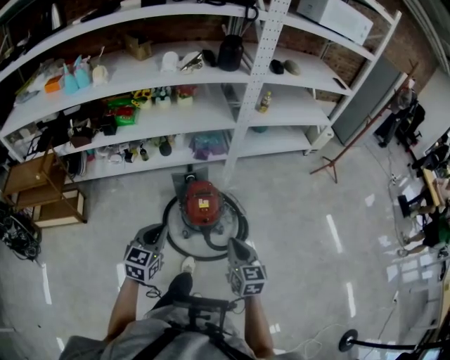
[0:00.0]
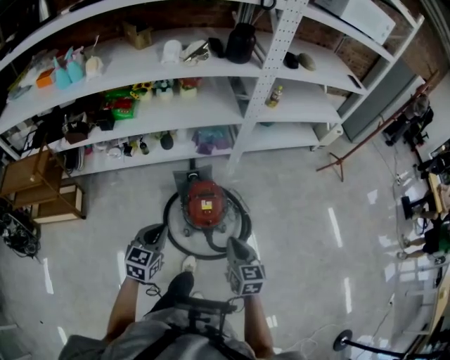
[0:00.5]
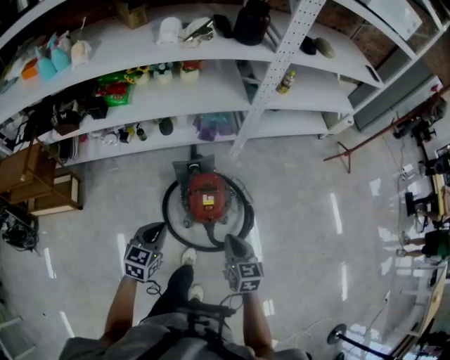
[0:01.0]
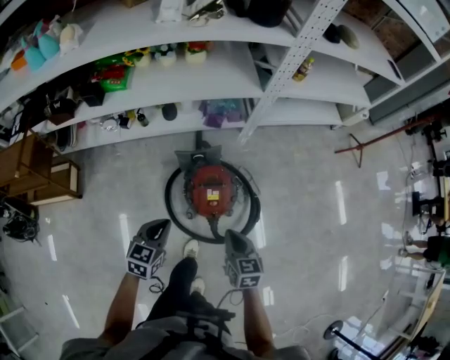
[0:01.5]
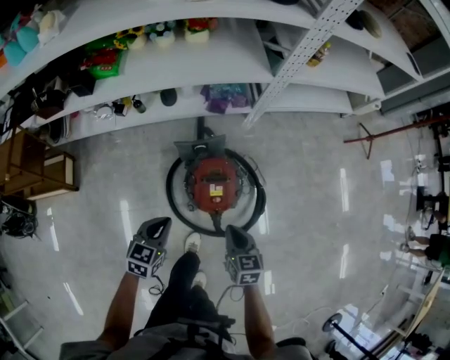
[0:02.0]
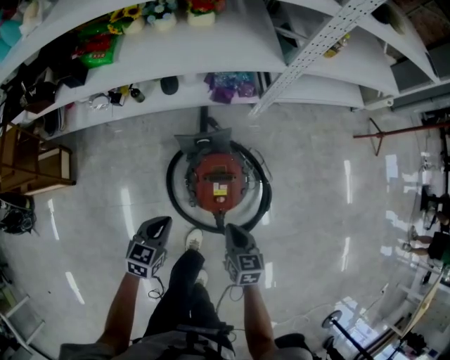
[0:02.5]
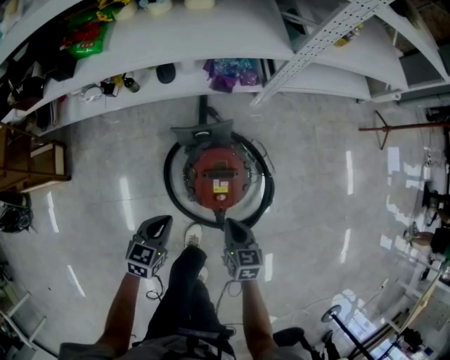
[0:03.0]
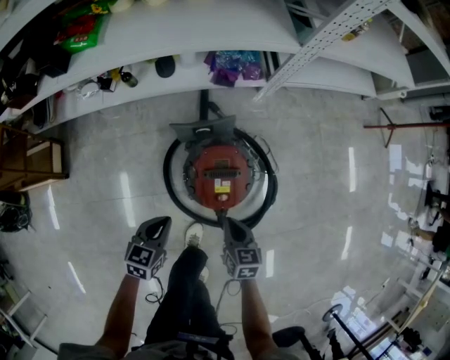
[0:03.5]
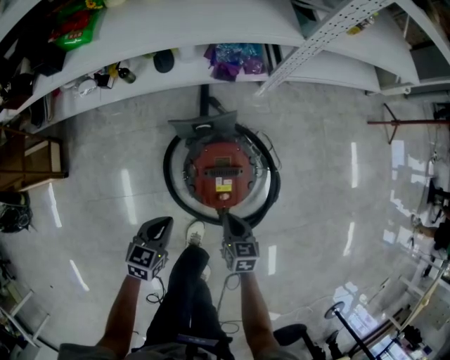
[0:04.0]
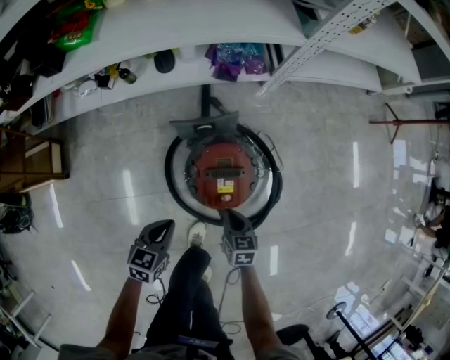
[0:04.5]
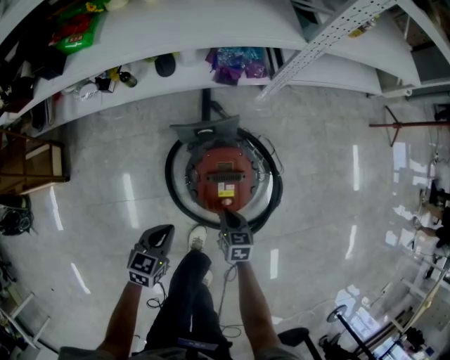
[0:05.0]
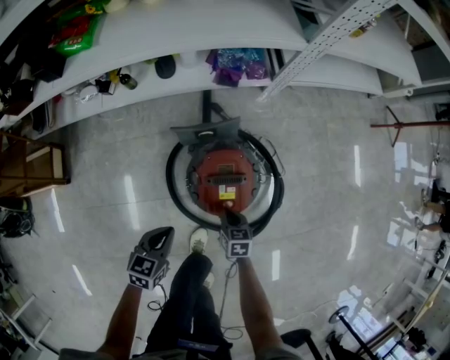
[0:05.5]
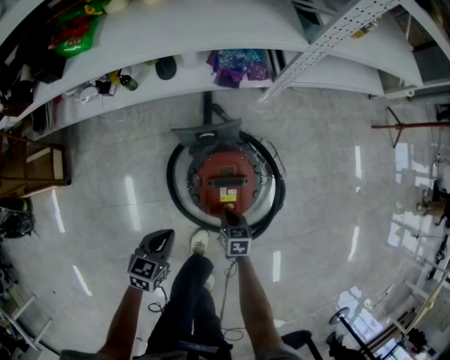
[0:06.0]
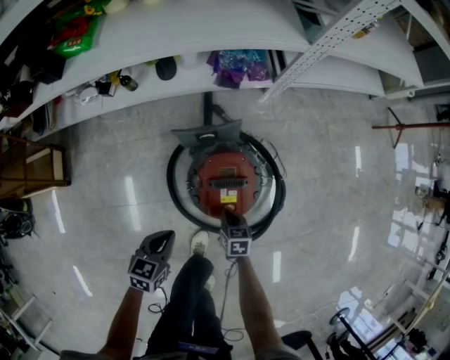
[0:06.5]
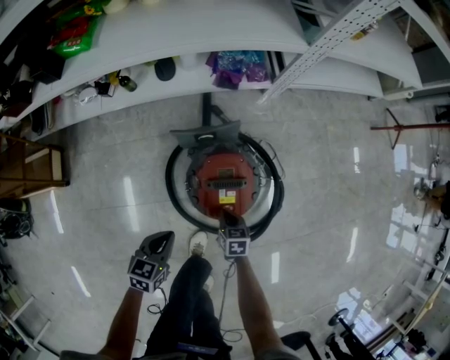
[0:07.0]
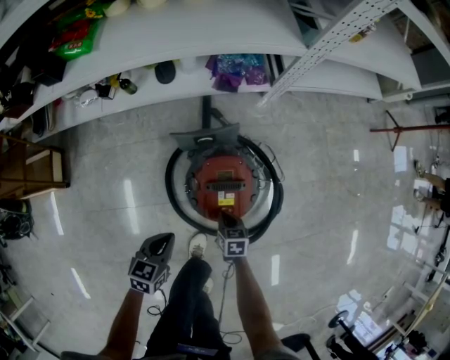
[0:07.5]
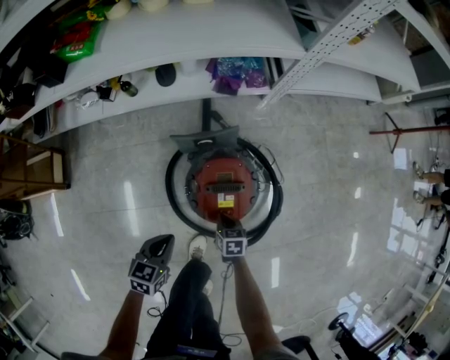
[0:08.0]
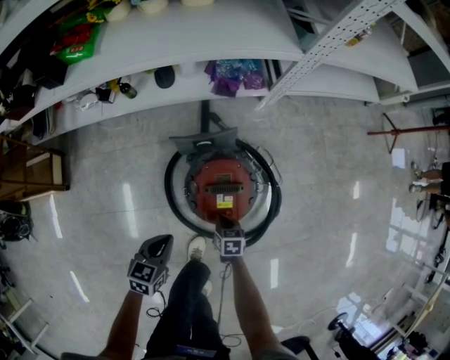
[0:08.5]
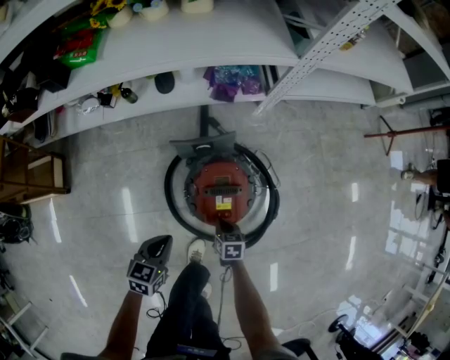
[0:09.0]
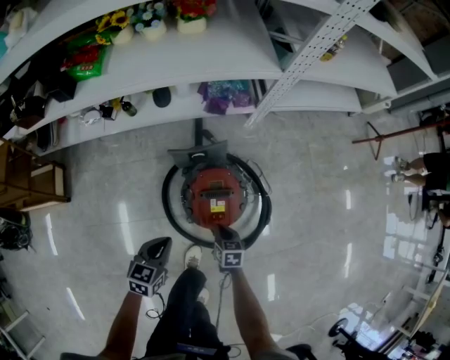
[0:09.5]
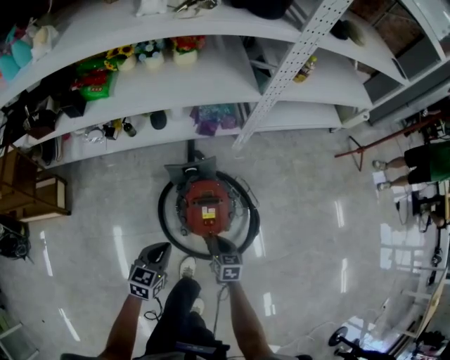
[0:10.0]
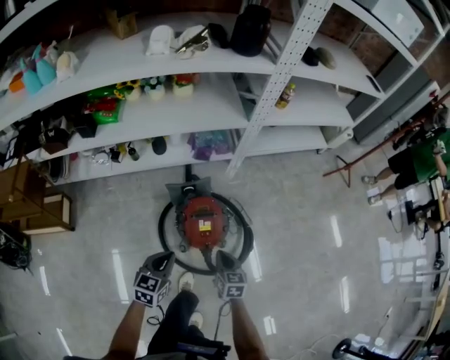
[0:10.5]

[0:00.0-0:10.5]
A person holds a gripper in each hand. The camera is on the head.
0:00.0 to 0:02.0: The right gripper moves forward and downward, about 30 cm. Meanwhile the left gripper is displaced downward and forward by about 30 cm.
0:02.0 to 0:04.0: Both grippers move downward, some 20 cm.
0:04.0 to 0:06.5: The right gripper goes about 10 cm downward.
0:06.5 to 0:08.5: There are only small adjustments of the grippers.
0:08.5 to 0:10.5: The right gripper moves upward, some 30 cm, and swivels approximately 30 degrees. The left gripper is displaced upward by about 20 cm.

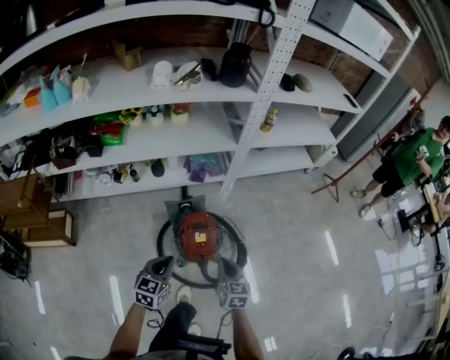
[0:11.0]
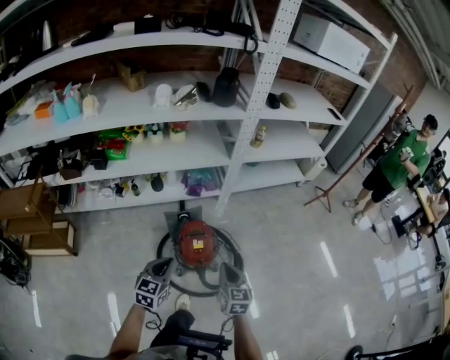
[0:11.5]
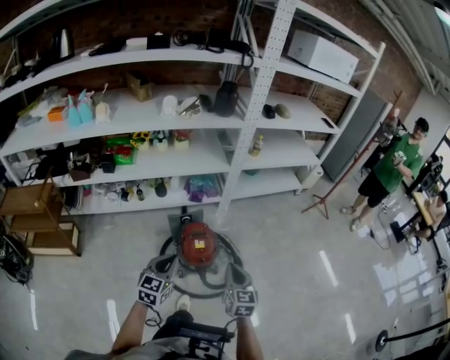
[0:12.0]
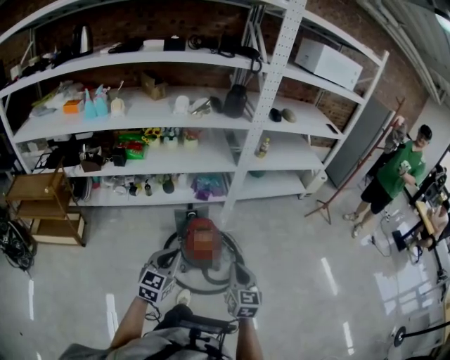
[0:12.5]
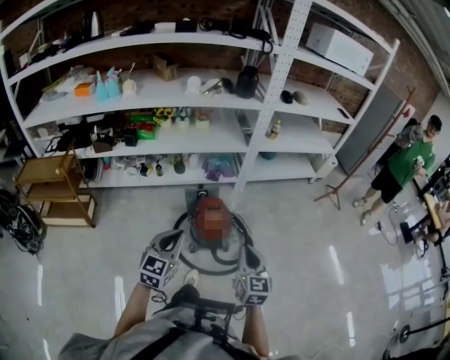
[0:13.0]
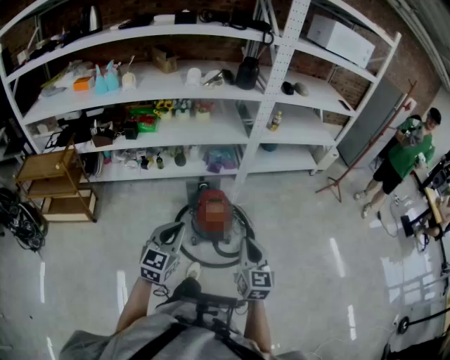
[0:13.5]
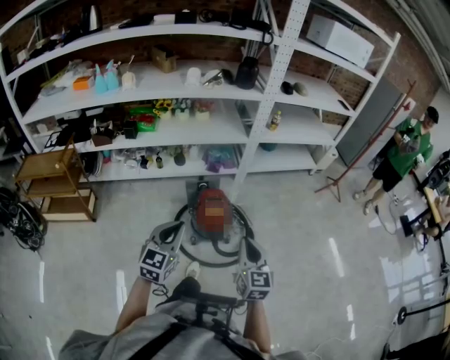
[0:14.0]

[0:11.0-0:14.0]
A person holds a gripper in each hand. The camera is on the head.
0:11.0 to 0:12.5: The two grippers go about 25 cm backward and upward.
0:12.5 to 0:14.0: Both grippers travel together backward, approximately 5 cm.

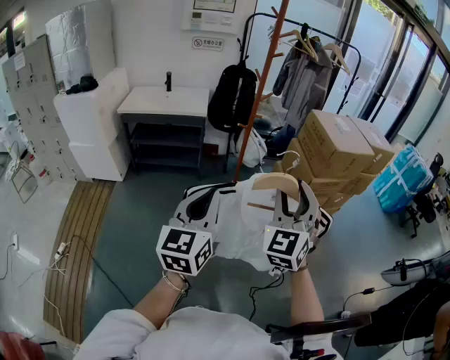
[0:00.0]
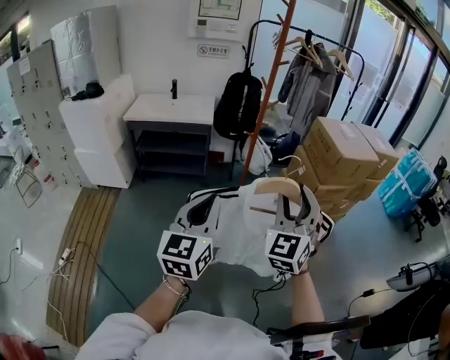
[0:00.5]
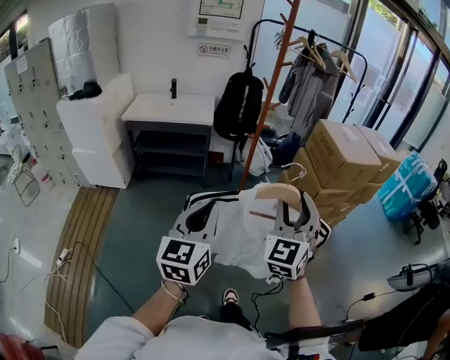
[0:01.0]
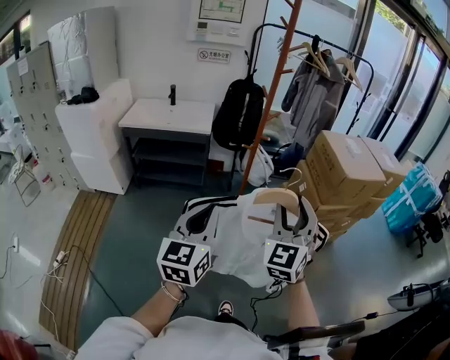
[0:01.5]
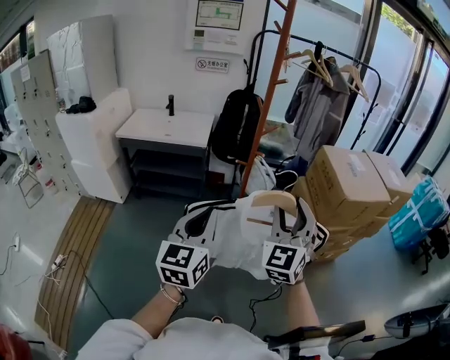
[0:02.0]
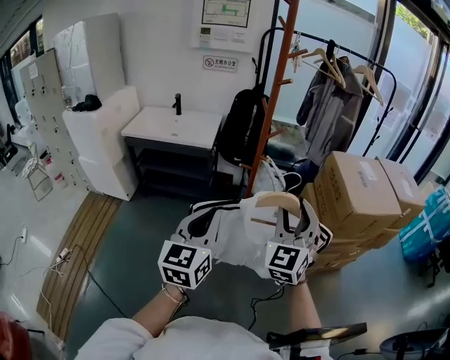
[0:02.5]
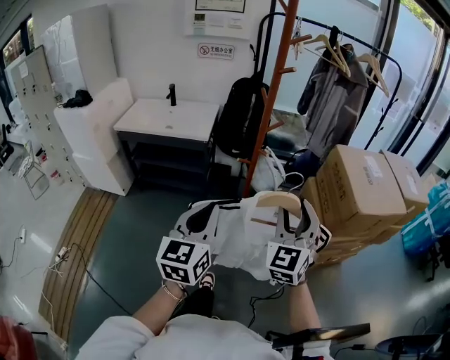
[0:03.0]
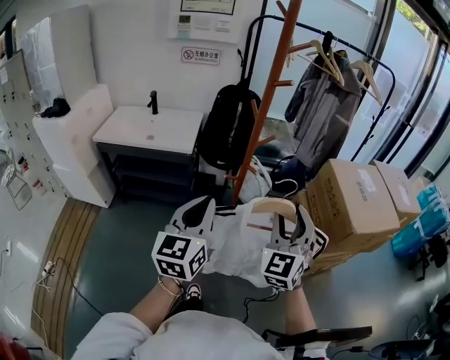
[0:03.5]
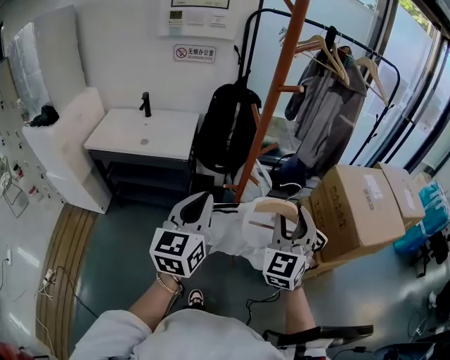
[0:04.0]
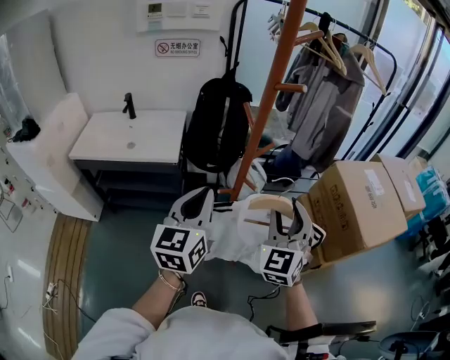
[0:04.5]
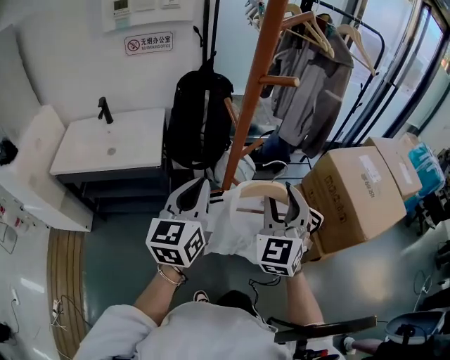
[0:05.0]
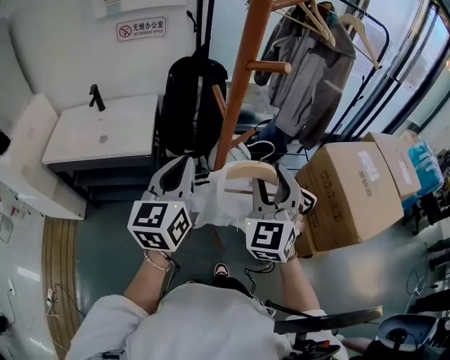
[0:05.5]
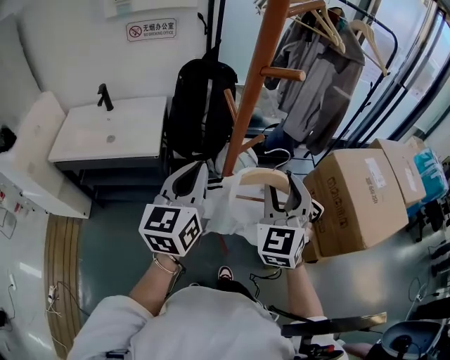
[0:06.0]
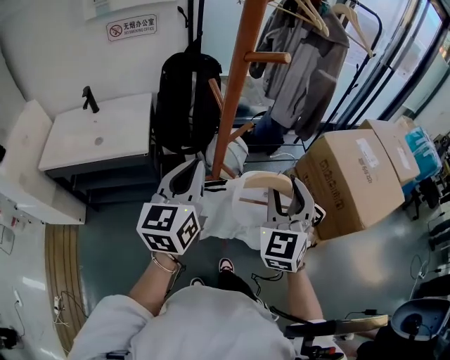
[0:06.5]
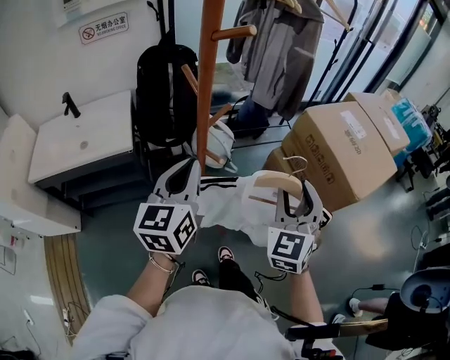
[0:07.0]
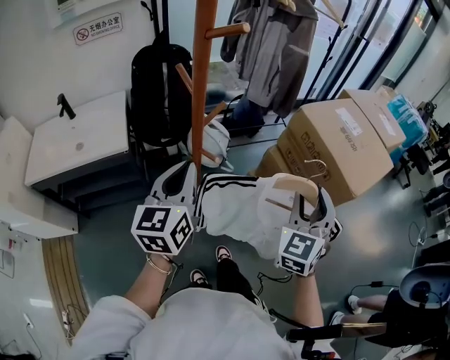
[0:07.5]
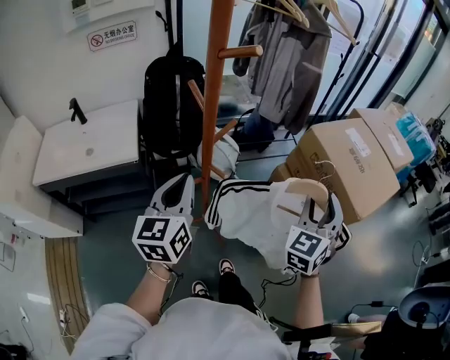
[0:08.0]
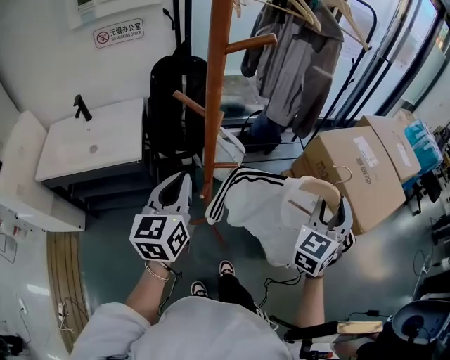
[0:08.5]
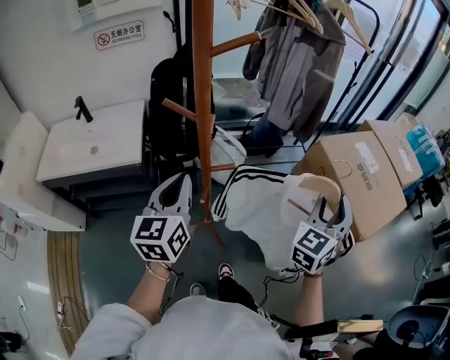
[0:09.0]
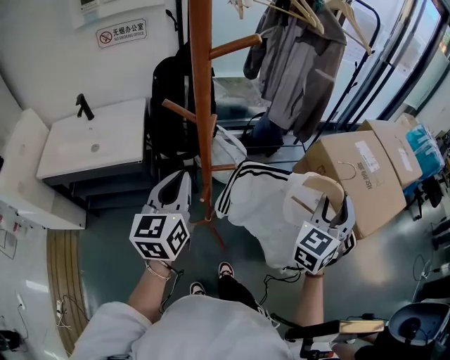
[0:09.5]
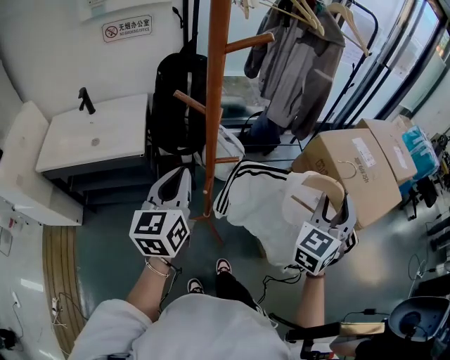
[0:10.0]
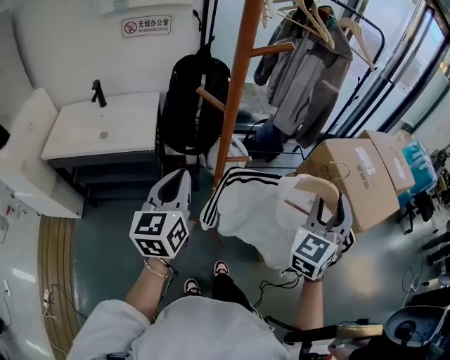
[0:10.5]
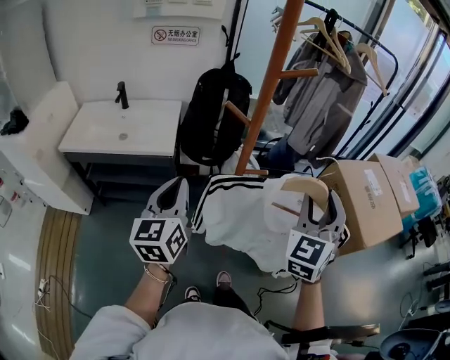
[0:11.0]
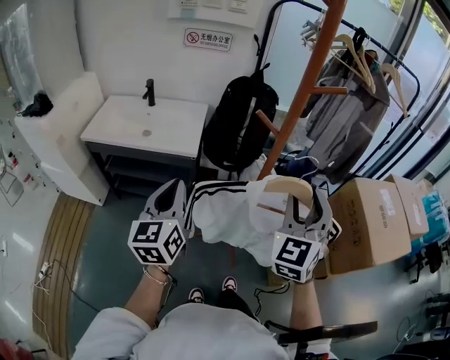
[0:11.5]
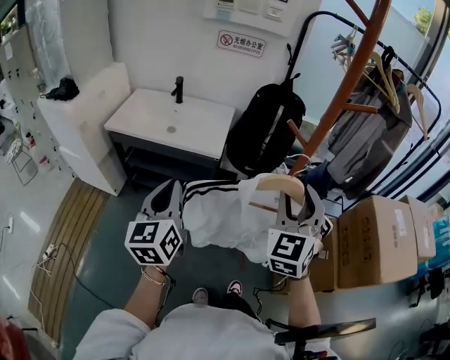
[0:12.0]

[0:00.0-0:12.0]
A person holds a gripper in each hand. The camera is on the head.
0:00.0 to 0:02.0: Both grippers travel together forward, roughly 20 cm.
0:02.0 to 0:04.0: Both grippers travel together forward, roughly 25 cm.
0:04.0 to 0:06.0: Both grippers travel together forward, about 15 cm.
0:06.0 to 0:08.0: The right gripper moves to the right, about 20 cm, and rotates some 30 degrees; the left gripper changes place by approximately 5 cm.
0:08.0 to 0:10.0: The grippers stay close to where they were, moving slightly.
0:10.0 to 0:12.0: The left gripper shifts by roughly 25 cm, and turns by approximately 30 degrees. The right gripper ends up roughly 35 cm from where it was, and turns by some 40 degrees.

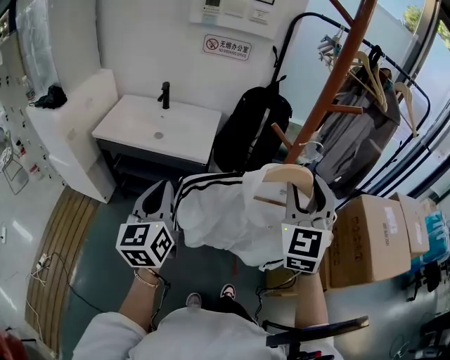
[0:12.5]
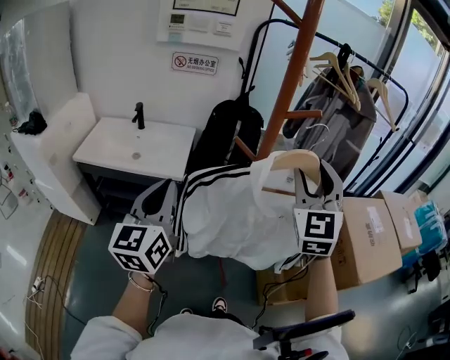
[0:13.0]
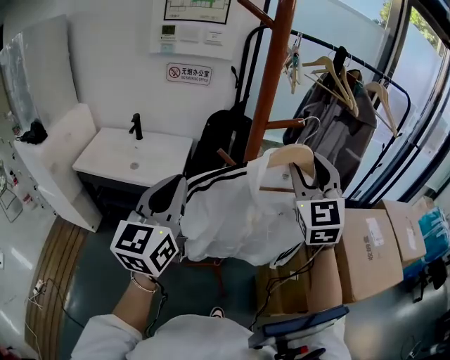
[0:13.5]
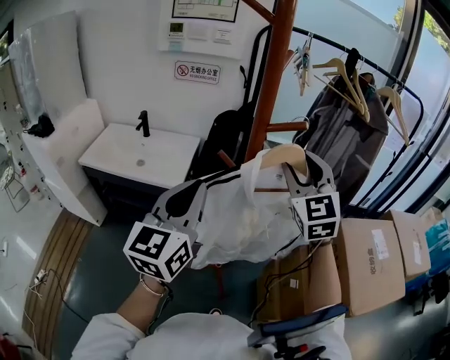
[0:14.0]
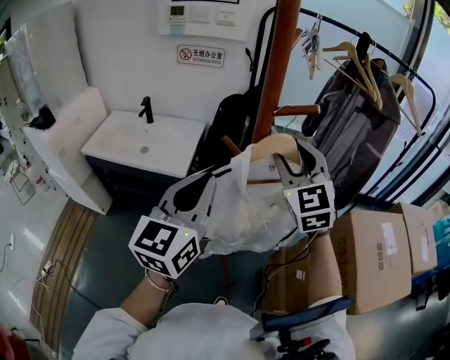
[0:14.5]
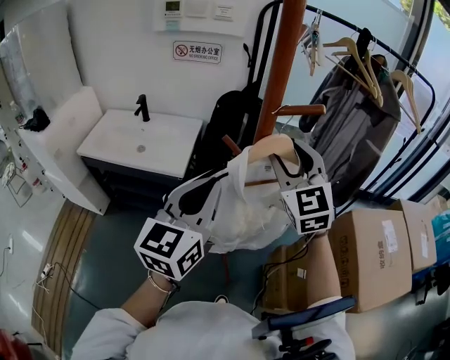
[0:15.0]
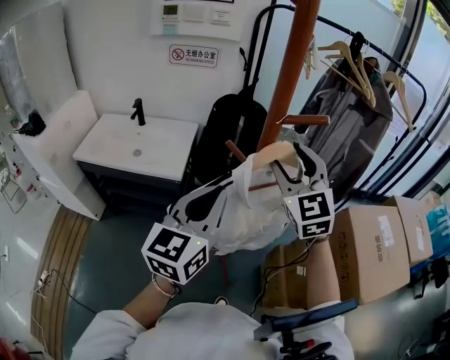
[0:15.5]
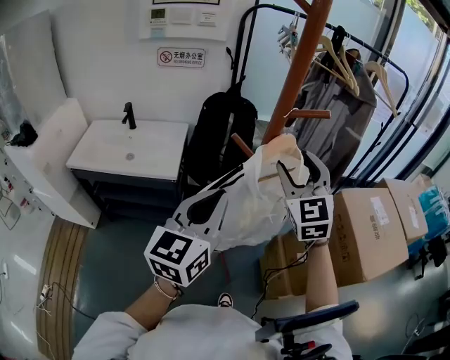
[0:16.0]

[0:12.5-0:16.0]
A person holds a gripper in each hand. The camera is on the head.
0:12.5 to 0:14.5: The left gripper is displaced to the right and upward by roughly 25 cm, and turns by roughly 20 degrees. Meanwhile the right gripper shifts about 15 cm forward and to the right.
0:14.5 to 0:16.0: The right gripper moves backward, roughly 5 cm.
